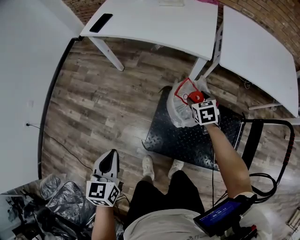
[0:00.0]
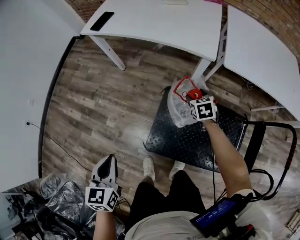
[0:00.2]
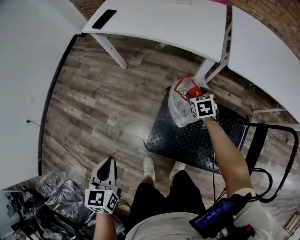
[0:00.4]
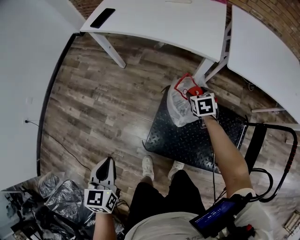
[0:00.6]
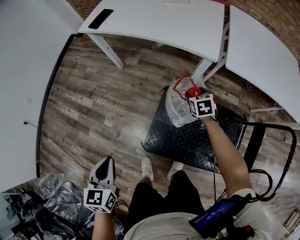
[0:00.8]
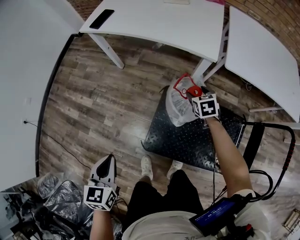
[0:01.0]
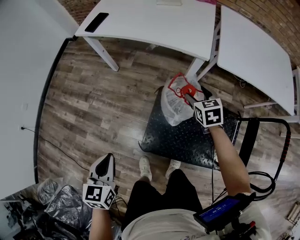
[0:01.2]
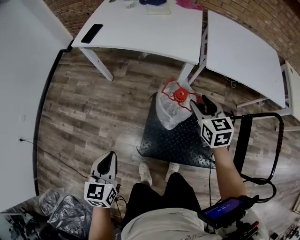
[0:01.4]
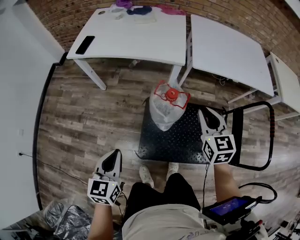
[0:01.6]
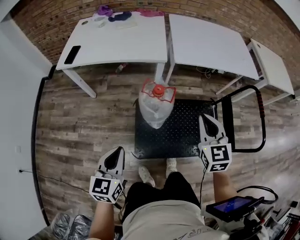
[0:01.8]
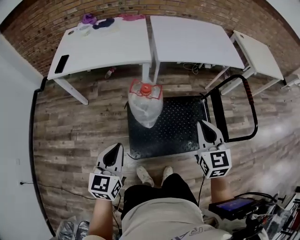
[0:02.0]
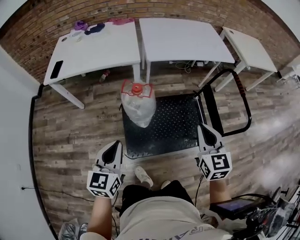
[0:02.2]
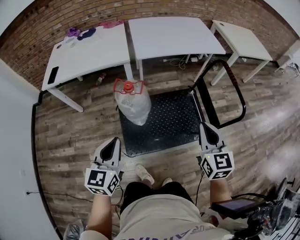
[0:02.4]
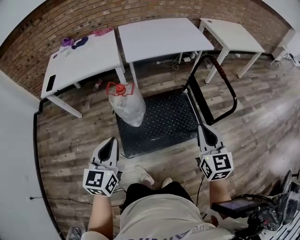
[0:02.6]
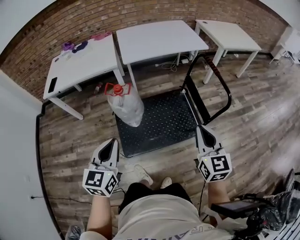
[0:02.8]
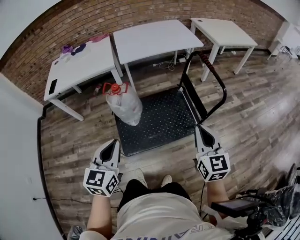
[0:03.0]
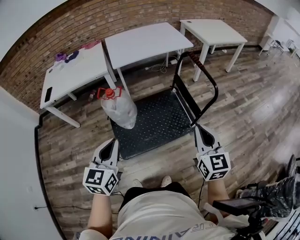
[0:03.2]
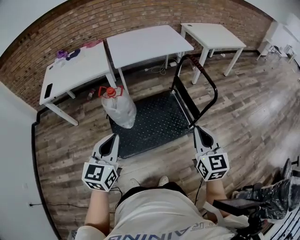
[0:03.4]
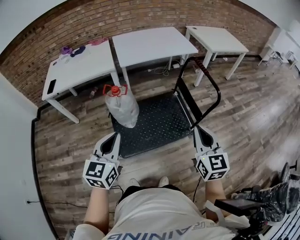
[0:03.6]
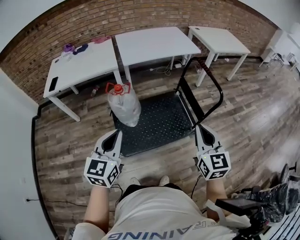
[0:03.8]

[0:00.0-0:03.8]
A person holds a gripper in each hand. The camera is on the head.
0:00.0 to 0:01.2: The right gripper is displaced upward by approximately 5 cm.
0:01.2 to 0:02.6: The right gripper changes place by approximately 60 cm, angles its fingers upward, by about 30 degrees, and closes up. The left gripper ends up about 30 cm from where it was, and changes its angle by approximately 40 degrees.
0:02.6 to 0:03.8: The left gripper shifts some 5 cm backward, while the right gripper heads backward and upward, covering some 10 cm.

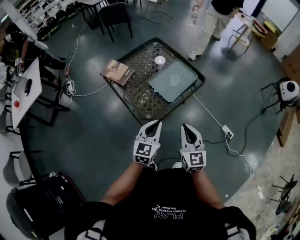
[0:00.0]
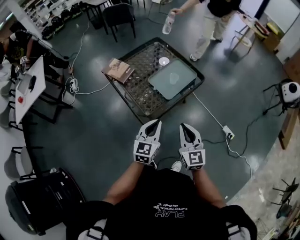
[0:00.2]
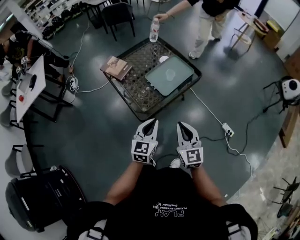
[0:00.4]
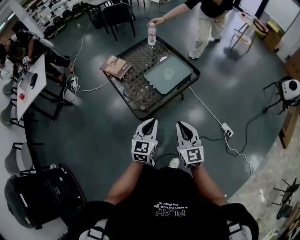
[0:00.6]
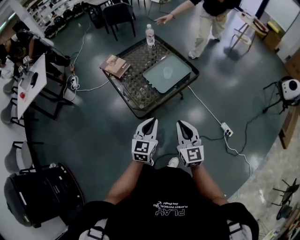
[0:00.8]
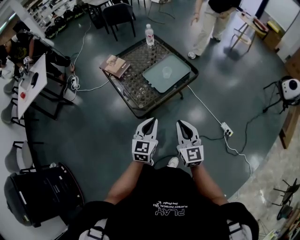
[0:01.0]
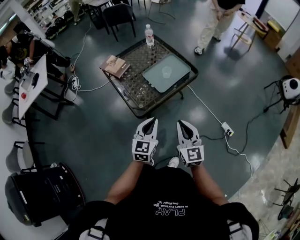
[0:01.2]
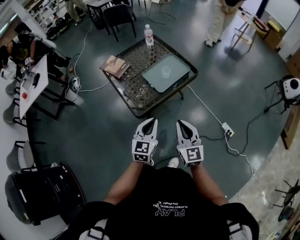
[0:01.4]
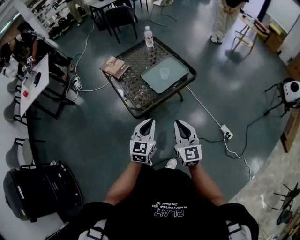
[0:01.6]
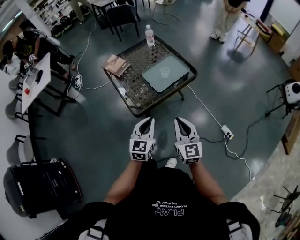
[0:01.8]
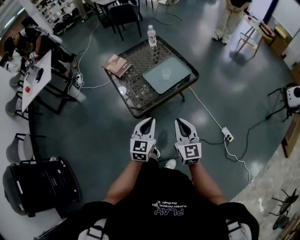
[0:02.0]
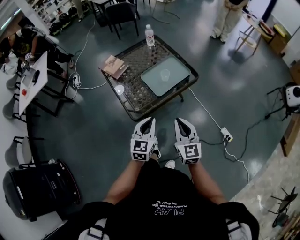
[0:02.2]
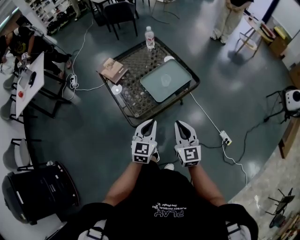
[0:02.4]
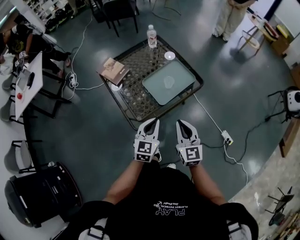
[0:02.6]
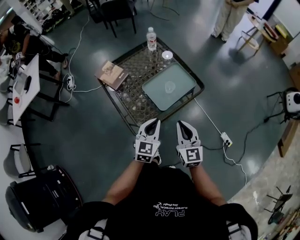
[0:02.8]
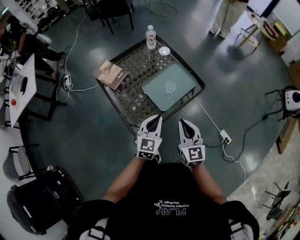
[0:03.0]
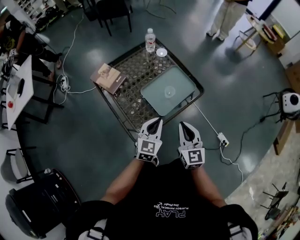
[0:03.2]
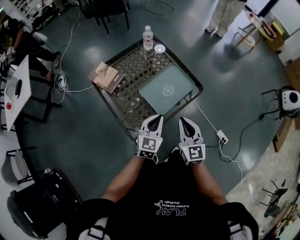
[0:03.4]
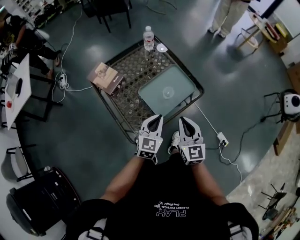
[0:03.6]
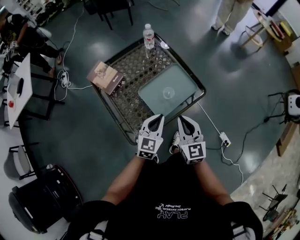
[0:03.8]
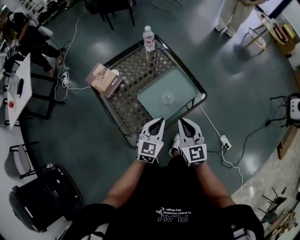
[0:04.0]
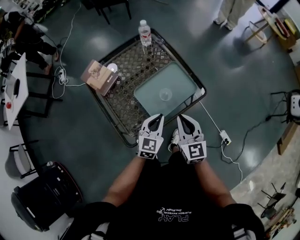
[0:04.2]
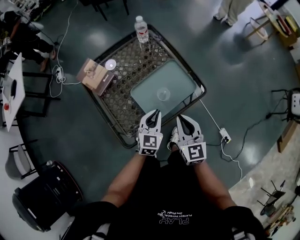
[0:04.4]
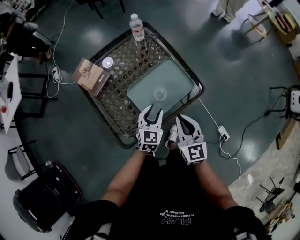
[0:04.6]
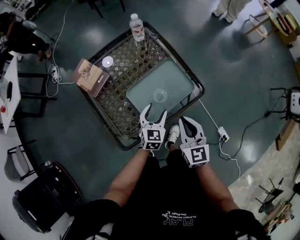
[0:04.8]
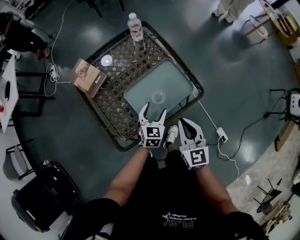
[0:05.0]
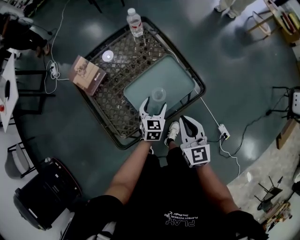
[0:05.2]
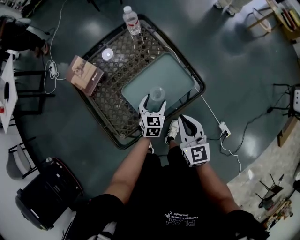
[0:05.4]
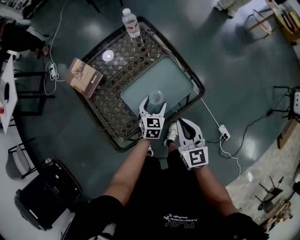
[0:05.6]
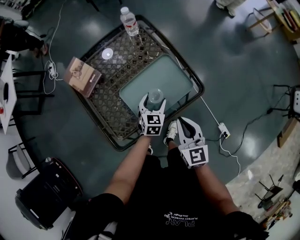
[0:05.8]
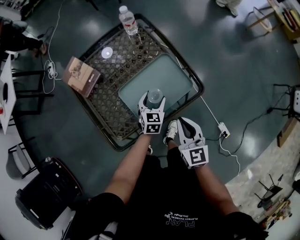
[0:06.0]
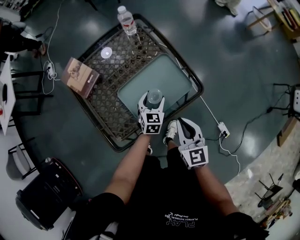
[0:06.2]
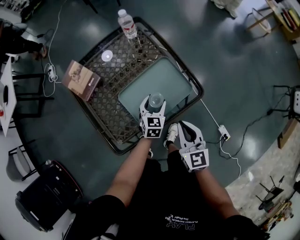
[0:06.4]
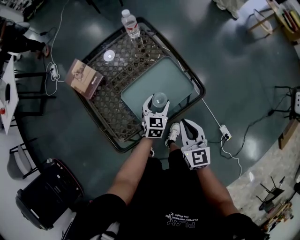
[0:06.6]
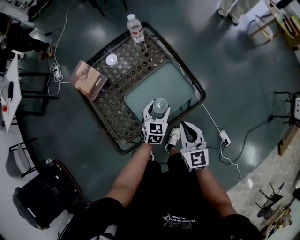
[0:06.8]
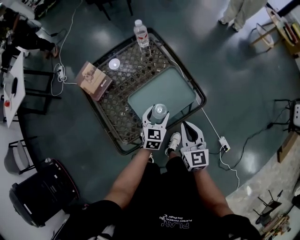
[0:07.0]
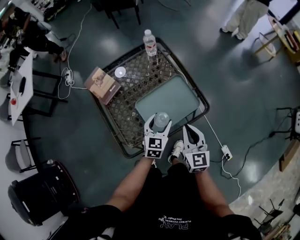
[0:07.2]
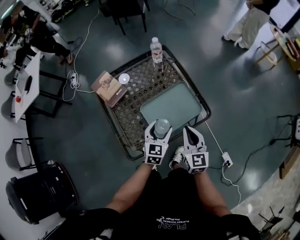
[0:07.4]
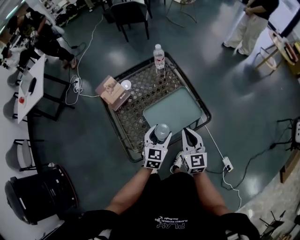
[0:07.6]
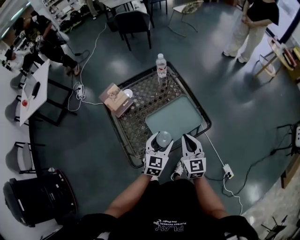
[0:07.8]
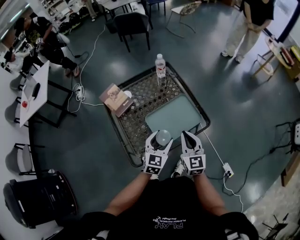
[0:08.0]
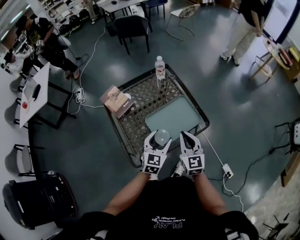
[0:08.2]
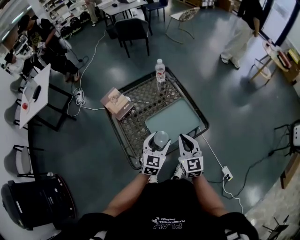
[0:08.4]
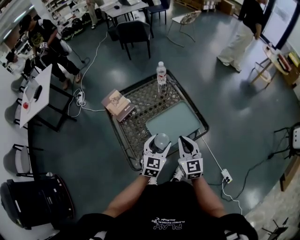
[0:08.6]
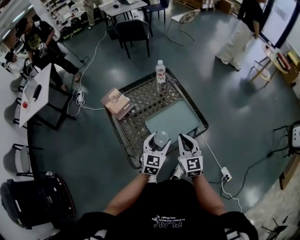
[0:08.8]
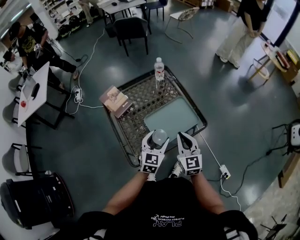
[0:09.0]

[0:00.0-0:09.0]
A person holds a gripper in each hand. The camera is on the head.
0:00.0 to 0:01.6: The left gripper is displaced backward and to the right by roughly 10 cm. Meanwhile the right gripper moves to the right and backward, approximately 10 cm.
0:01.6 to 0:03.0: Both grippers travel together forward, some 20 cm.
0:03.0 to 0:04.4: Both grippers move forward and downward, roughly 15 cm.
0:04.4 to 0:06.0: The left gripper heads downward and forward, covering some 15 cm, and opens its fingers, while the right gripper shifts by about 5 cm.
0:06.0 to 0:07.6: The left gripper moves upward and backward, approximately 15 cm. Meanwhile the right gripper moves upward, approximately 5 cm.
0:07.6 to 0:09.0: The left gripper travels upward by approximately 5 cm.

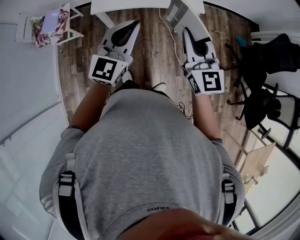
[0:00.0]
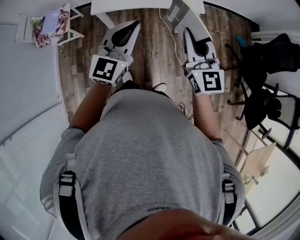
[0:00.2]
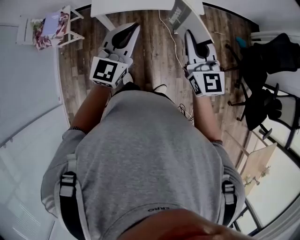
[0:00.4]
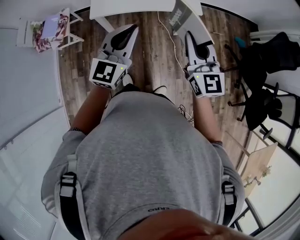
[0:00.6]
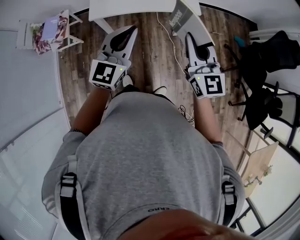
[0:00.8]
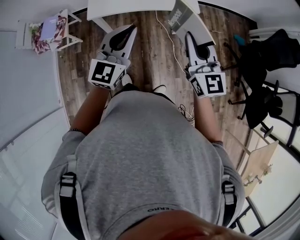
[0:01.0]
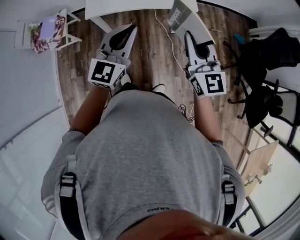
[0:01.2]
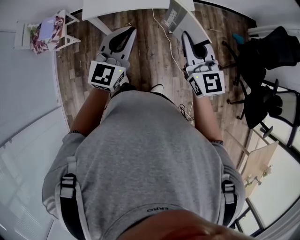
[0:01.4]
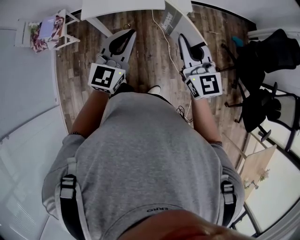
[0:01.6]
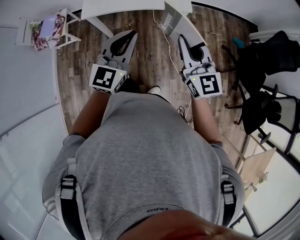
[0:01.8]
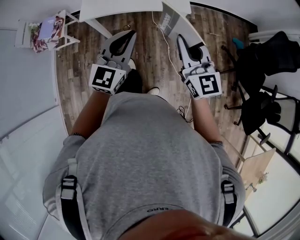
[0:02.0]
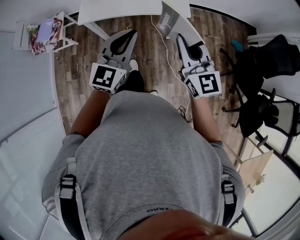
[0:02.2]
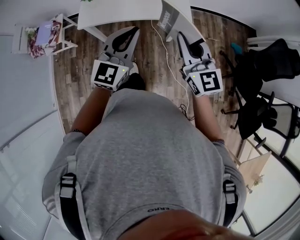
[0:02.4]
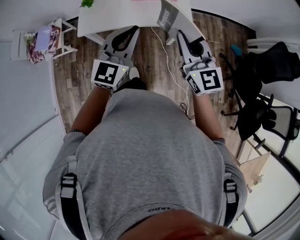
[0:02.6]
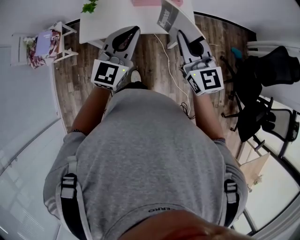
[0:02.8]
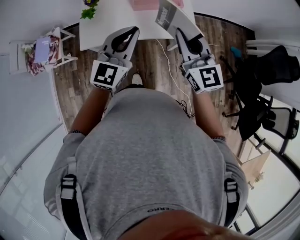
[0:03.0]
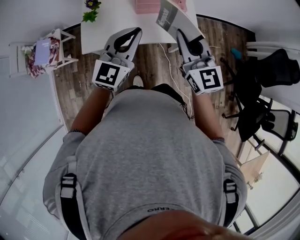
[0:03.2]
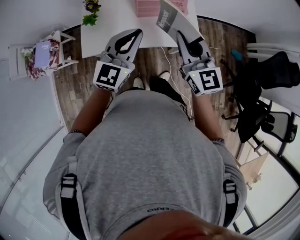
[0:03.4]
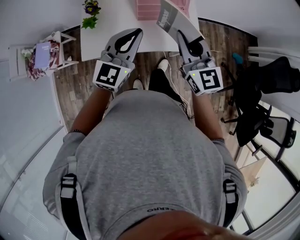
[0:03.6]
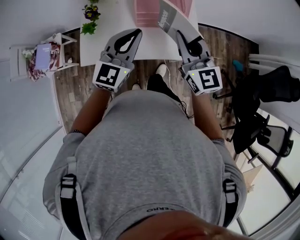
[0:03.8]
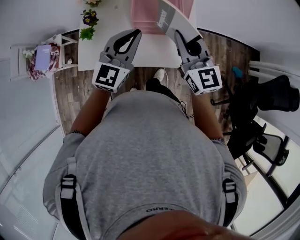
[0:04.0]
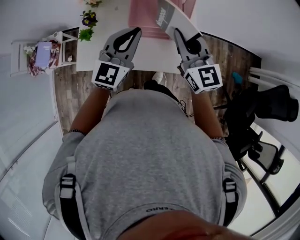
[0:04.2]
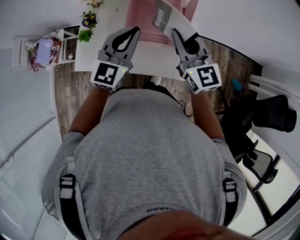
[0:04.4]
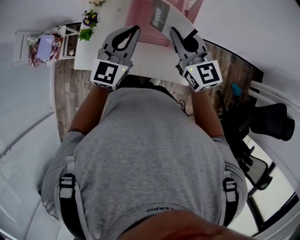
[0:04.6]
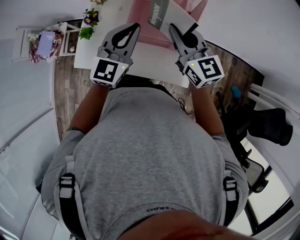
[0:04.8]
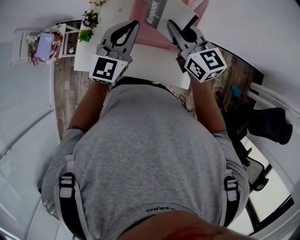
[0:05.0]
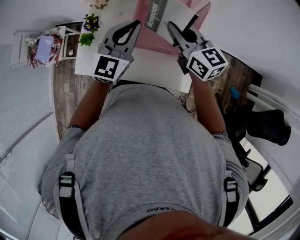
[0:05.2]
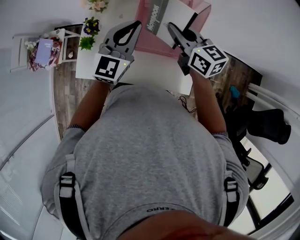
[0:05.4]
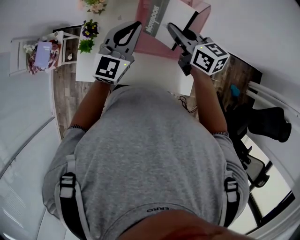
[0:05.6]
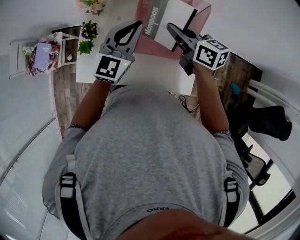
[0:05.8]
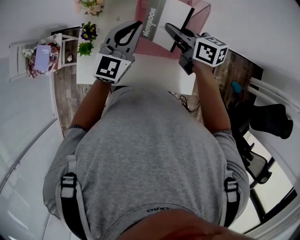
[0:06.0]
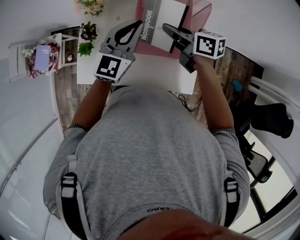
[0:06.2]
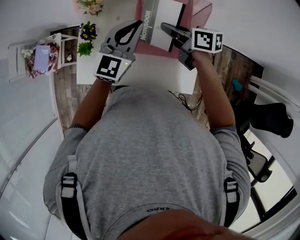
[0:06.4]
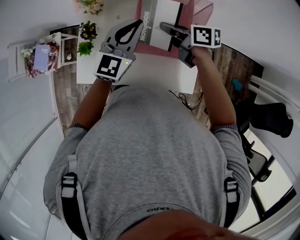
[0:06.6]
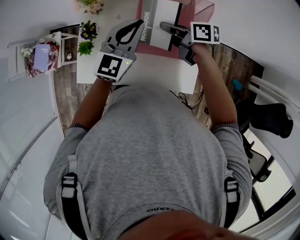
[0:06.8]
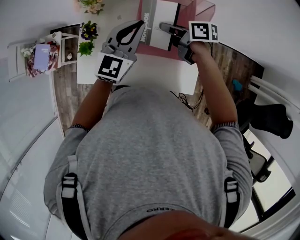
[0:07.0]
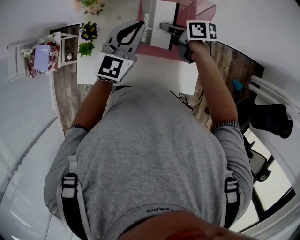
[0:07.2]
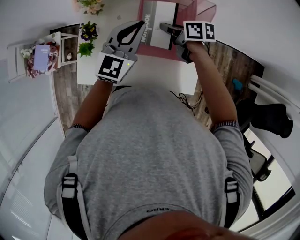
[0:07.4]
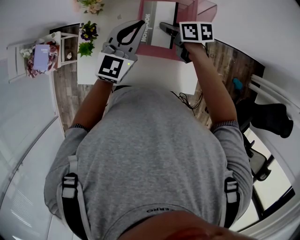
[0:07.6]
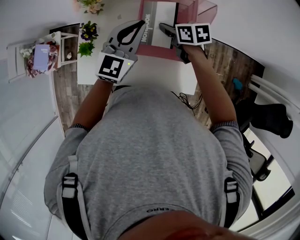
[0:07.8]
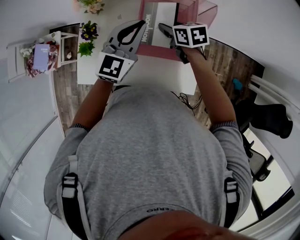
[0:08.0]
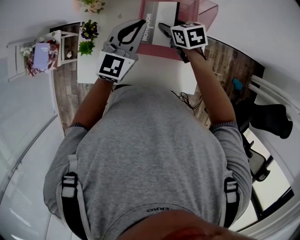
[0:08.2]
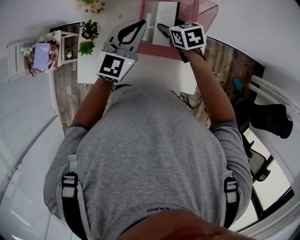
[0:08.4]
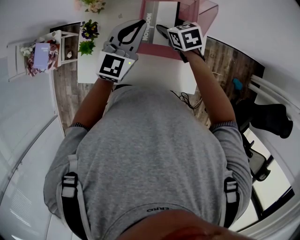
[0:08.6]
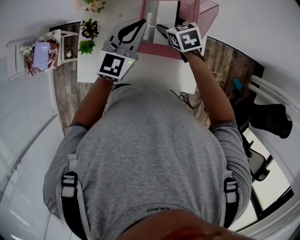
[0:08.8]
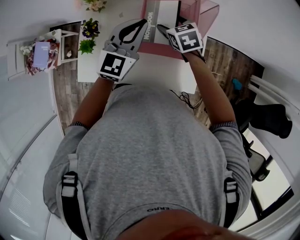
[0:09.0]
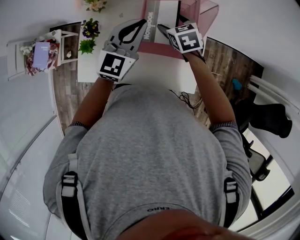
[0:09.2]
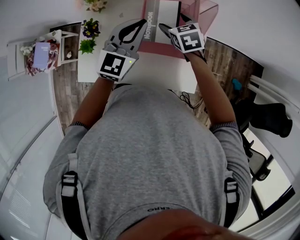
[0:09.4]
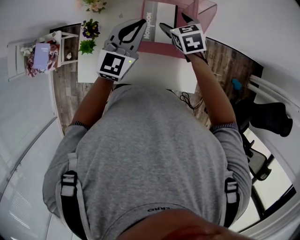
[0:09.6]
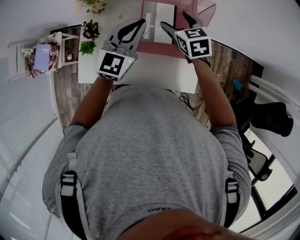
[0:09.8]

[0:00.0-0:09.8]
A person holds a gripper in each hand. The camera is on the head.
0:00.0 to 0:01.4: The grippers both shift to the right by approximately 5 cm.
0:01.4 to 0:02.8: The two grippers go approximately 20 cm forward.
0:02.8 to 0:04.2: Both grippers travel together forward, about 25 cm.
0:04.2 to 0:05.6: The grippers both shift forward by roughly 15 cm. The right gripper rotates approximately 40 degrees.
0:05.6 to 0:07.0: The right gripper moves downward, about 10 cm, and rotates about 30 degrees.
0:07.0 to 0:08.4: The right gripper turns by roughly 40 degrees, and opens up.
0:08.4 to 0:09.8: The right gripper shifts approximately 5 cm upward.

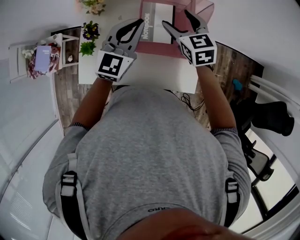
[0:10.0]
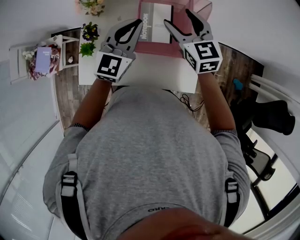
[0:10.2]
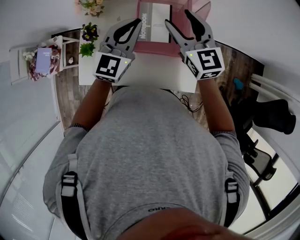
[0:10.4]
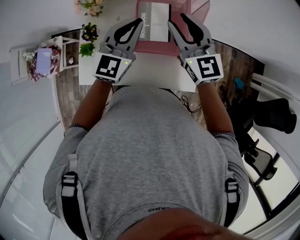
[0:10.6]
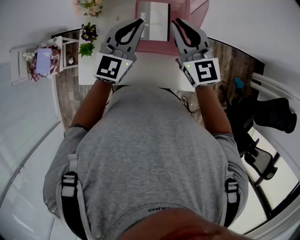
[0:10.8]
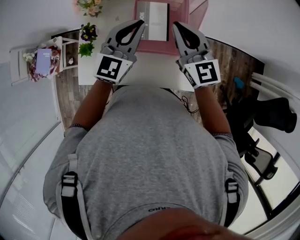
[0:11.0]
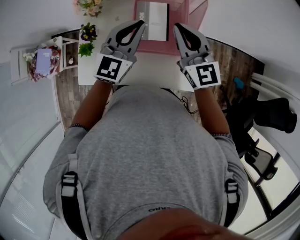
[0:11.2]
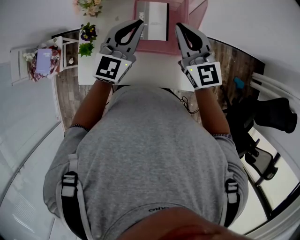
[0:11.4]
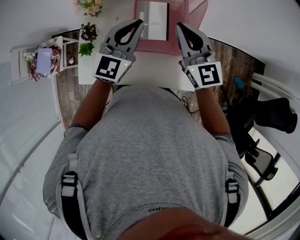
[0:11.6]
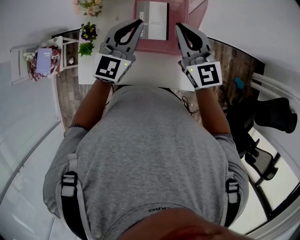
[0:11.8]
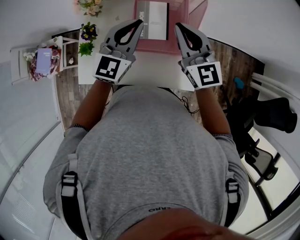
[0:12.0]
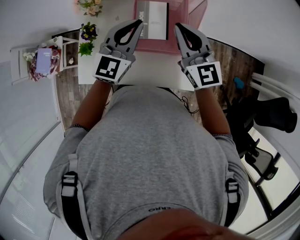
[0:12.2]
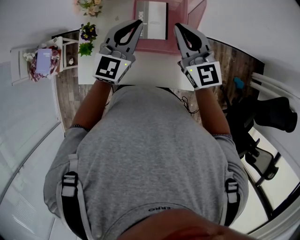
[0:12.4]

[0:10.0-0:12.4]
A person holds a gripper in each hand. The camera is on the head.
0:10.0 to 0:11.2: The right gripper shifts about 10 cm backward and upward, changes its angle by about 30 degrees, and closes its fingers.
0:11.2 to 0:12.4: Both grippers stay put.
